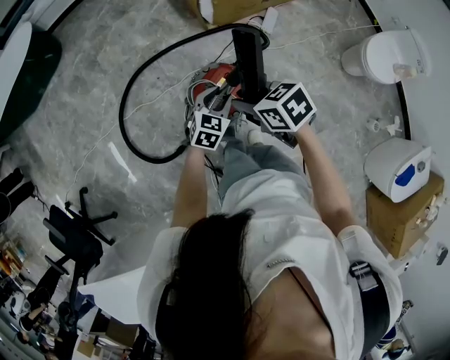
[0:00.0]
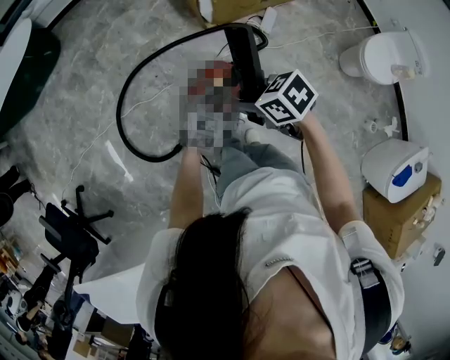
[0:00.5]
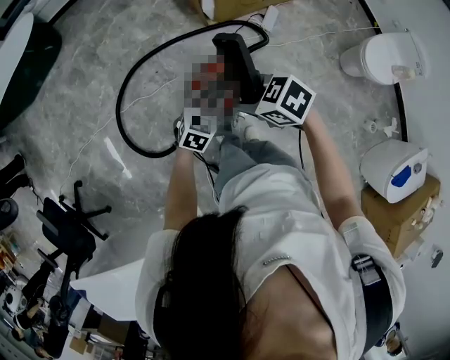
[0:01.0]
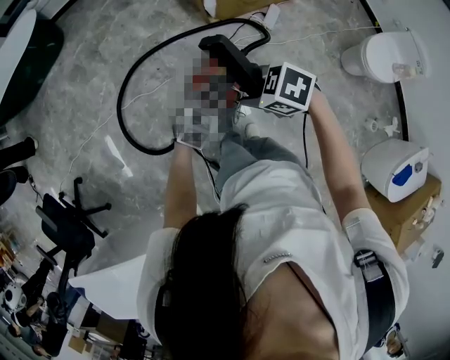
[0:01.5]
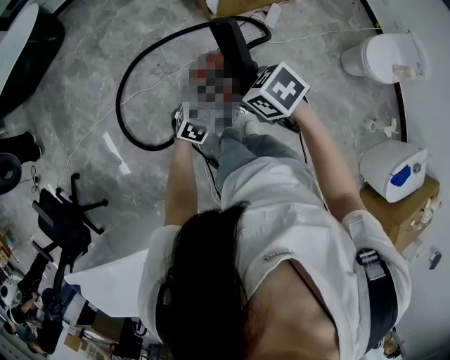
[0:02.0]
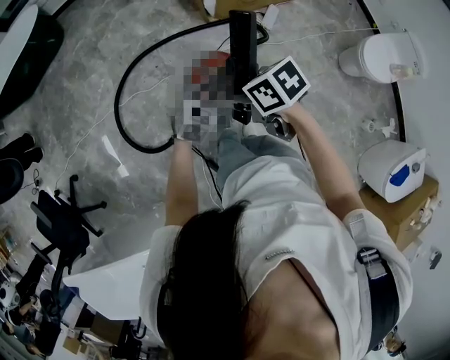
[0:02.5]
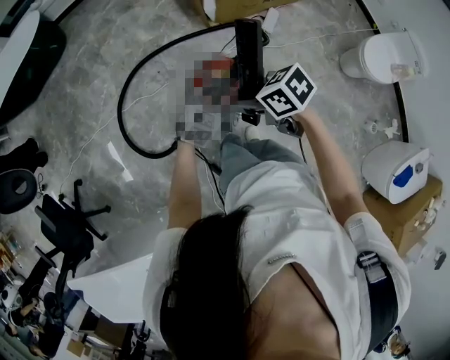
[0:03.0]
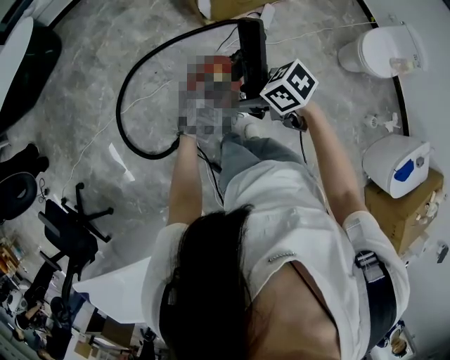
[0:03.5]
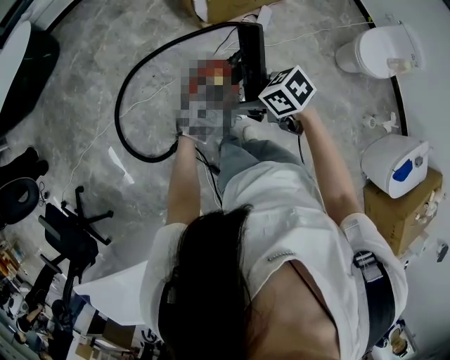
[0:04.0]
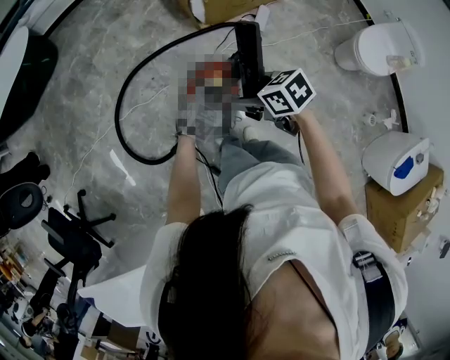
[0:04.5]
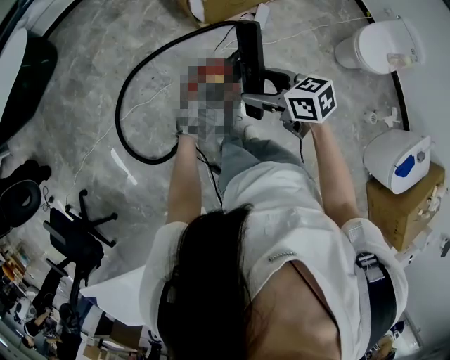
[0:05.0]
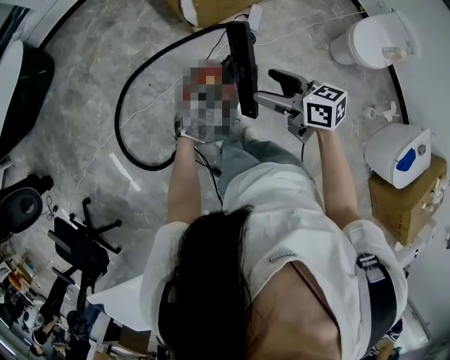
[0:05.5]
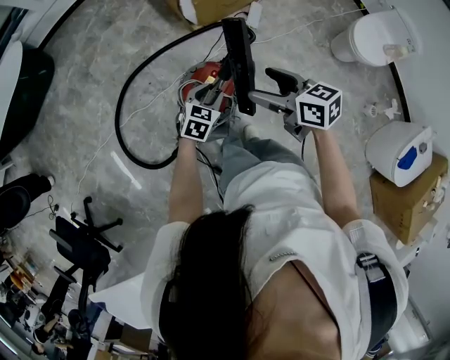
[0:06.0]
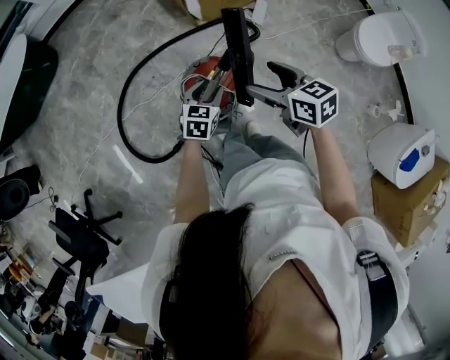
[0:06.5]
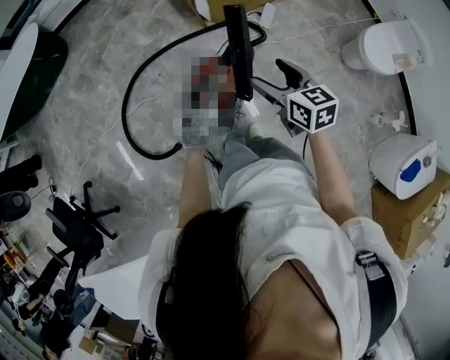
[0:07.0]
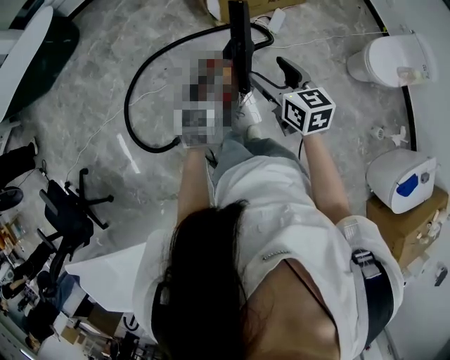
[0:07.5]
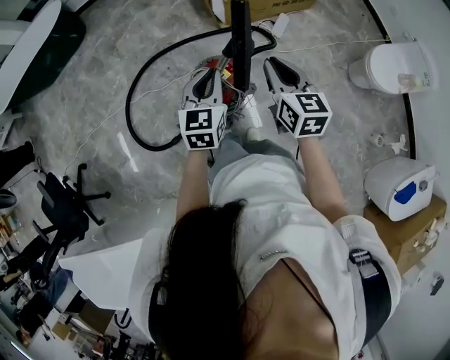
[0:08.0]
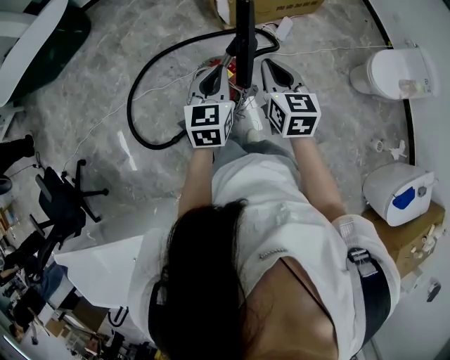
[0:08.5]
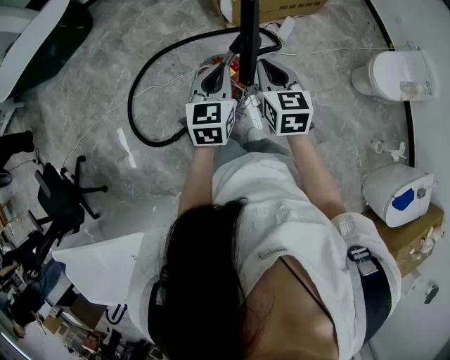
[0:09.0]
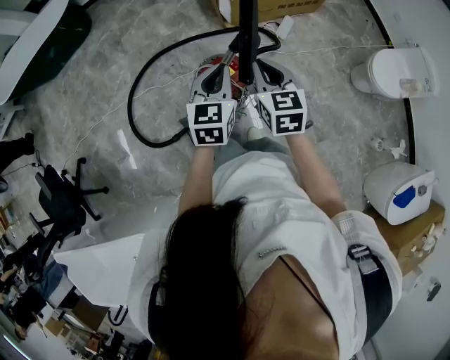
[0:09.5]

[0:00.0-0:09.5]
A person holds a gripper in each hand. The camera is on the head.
0:00.0 to 0:02.0: The left gripper changes place by some 5 cm. Meanwhile the right gripper moves some 5 cm.
0:02.0 to 0:04.0: The right gripper shifts by about 5 cm, and opens its fingers, while the left gripper shifts by approximately 5 cm.
0:04.0 to 0:05.5: The right gripper changes place by some 10 cm, and changes its angle by about 40 degrees.
0:05.5 to 0:07.5: The left gripper heads upward, covering some 15 cm, and turns by roughly 40 degrees; the right gripper rotates approximately 20 degrees.
0:07.5 to 0:09.5: The right gripper closes its fingers. Meanwhile the left gripper is displaced upward by some 5 cm, and closes up.

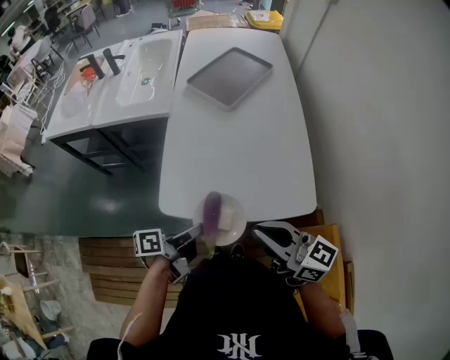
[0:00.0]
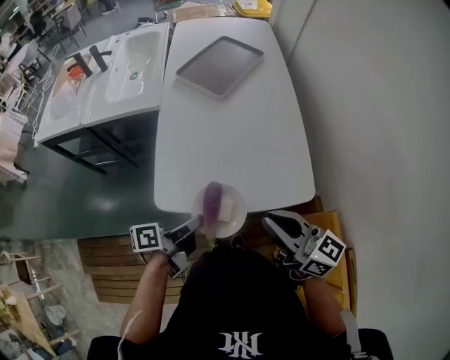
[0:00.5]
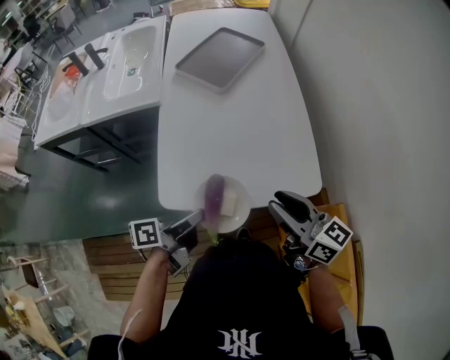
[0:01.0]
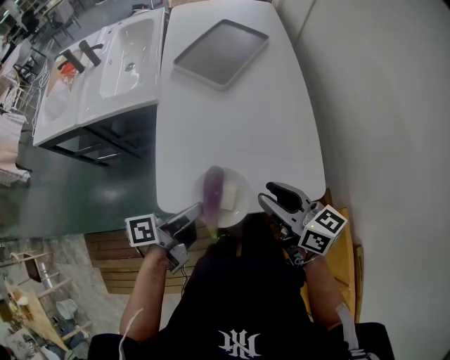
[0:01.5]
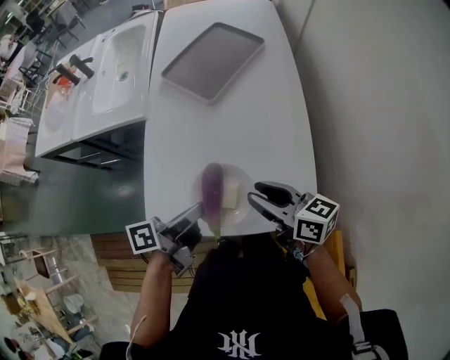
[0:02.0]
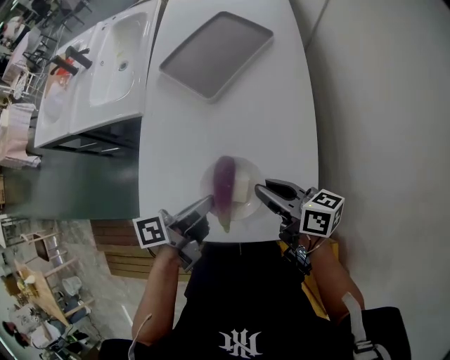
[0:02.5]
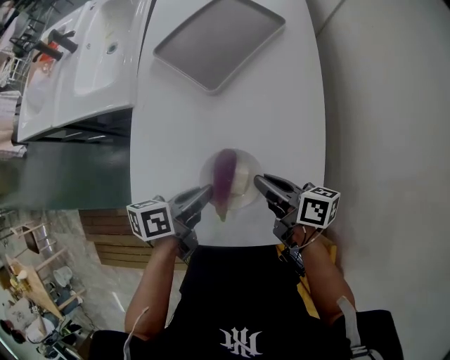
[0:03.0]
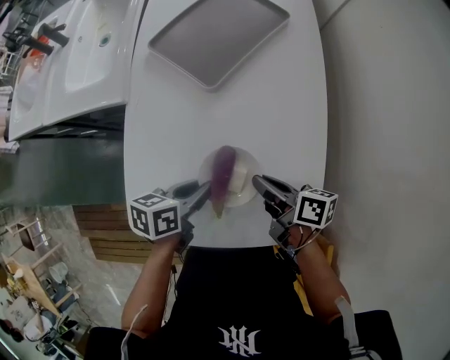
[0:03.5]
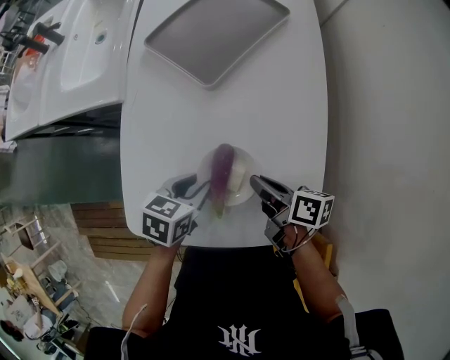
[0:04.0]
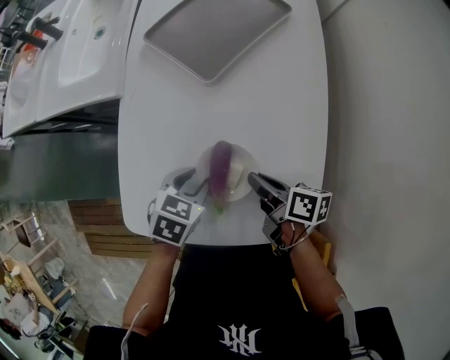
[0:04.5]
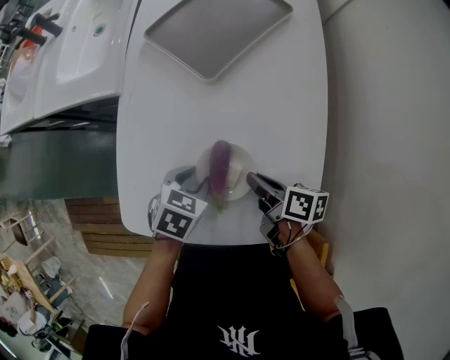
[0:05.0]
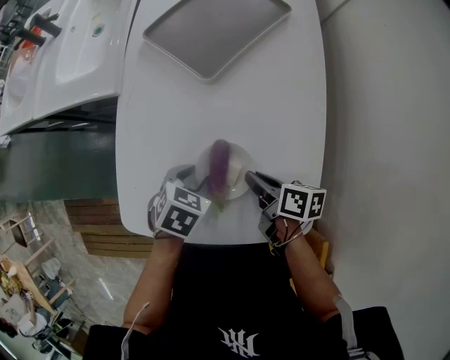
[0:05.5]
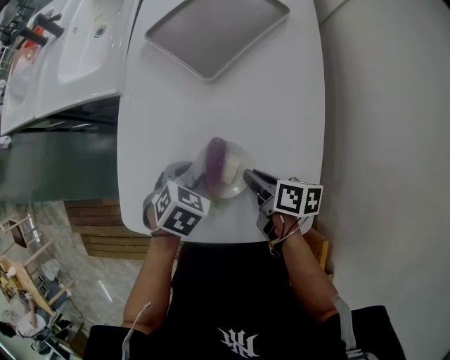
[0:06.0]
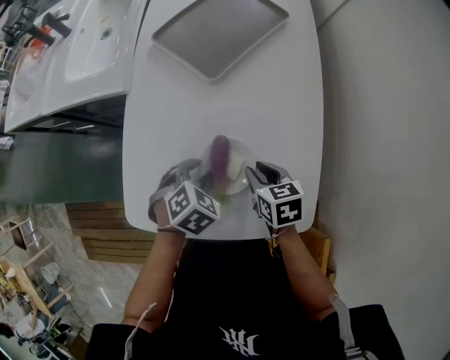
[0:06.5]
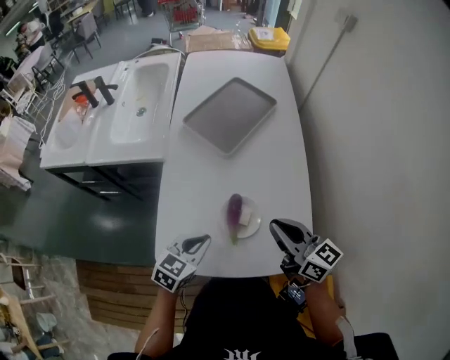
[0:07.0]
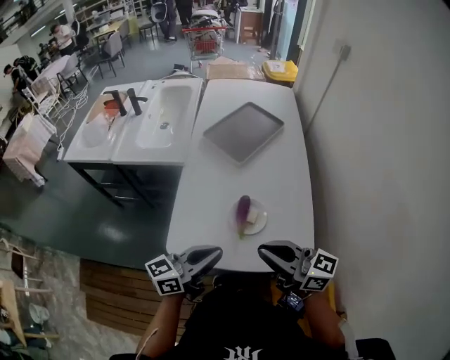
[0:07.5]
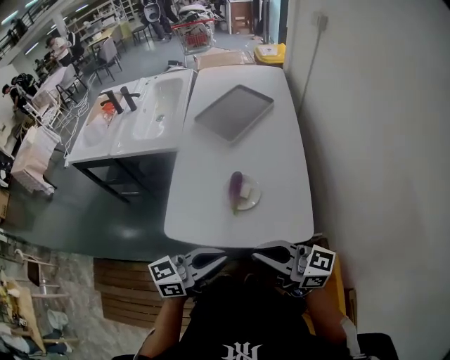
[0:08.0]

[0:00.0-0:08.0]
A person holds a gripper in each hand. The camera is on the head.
0:00.0 to 0:02.0: The right gripper is displaced forward and downward by about 20 cm, changes its angle by some 20 degrees, and opens its fingers; the left gripper heads forward and to the right, covering about 15 cm.
0:02.0 to 0:04.0: Both grippers move downward and forward, approximately 20 cm. The right gripper changes its angle by about 40 degrees, and closes, while the left gripper tilts its fingers about 40 degrees downward, and opens its fingers.
0:04.0 to 0:06.0: The left gripper swivels about 30 degrees.
0:06.0 to 0:08.0: The left gripper moves roughly 40 cm, tilts its fingers roughly 70 degrees upward, and closes; the right gripper shifts approximately 30 cm upward, and points its fingers about 50 degrees further upward.

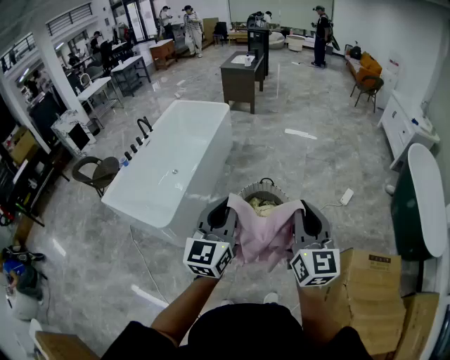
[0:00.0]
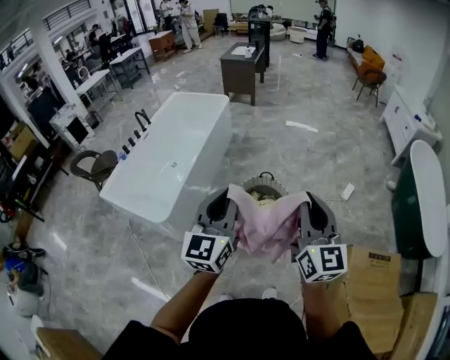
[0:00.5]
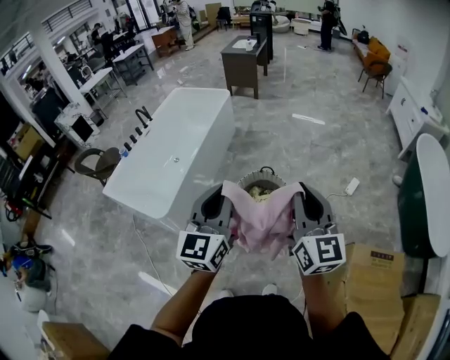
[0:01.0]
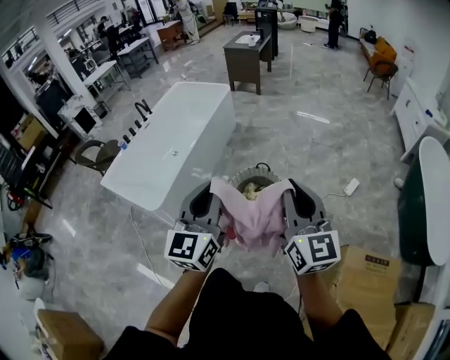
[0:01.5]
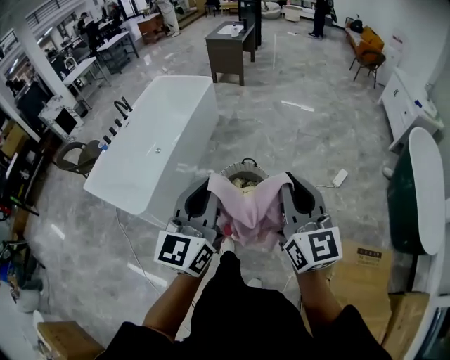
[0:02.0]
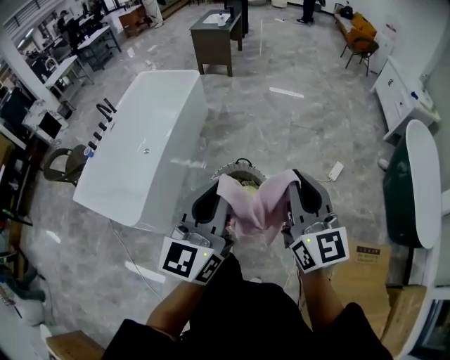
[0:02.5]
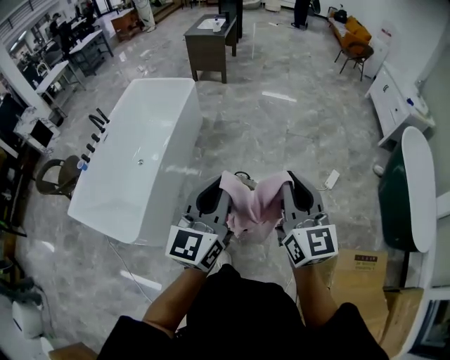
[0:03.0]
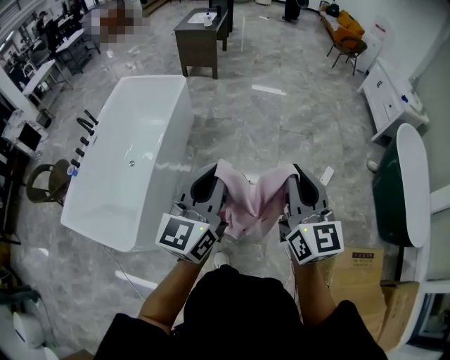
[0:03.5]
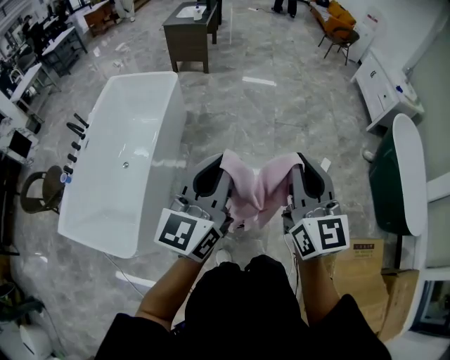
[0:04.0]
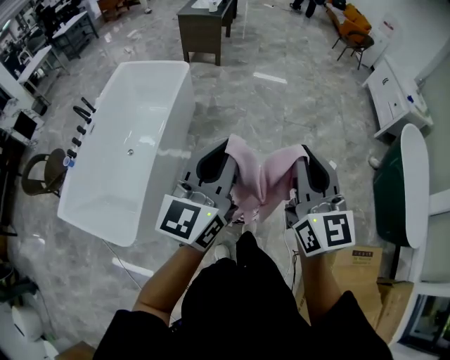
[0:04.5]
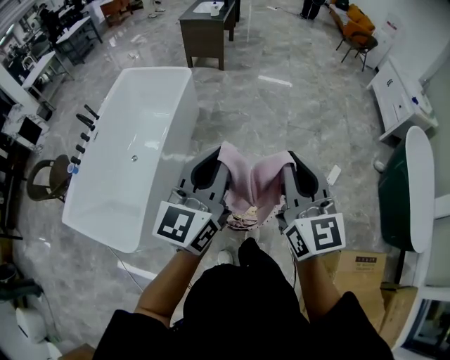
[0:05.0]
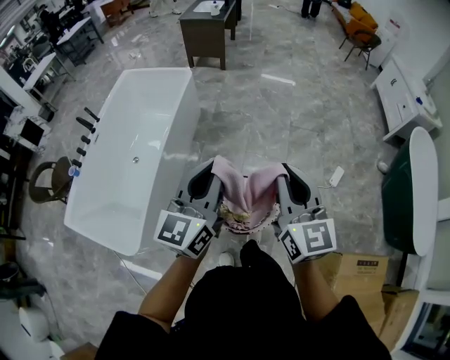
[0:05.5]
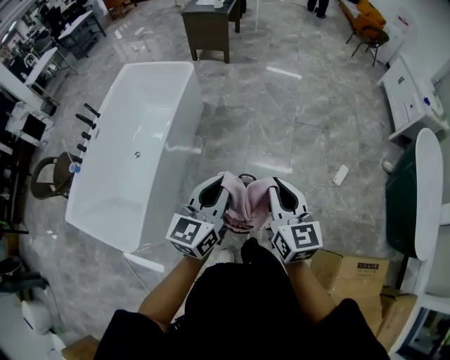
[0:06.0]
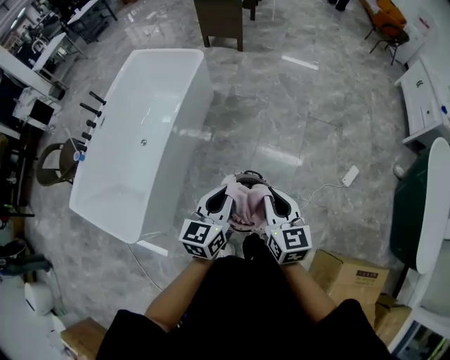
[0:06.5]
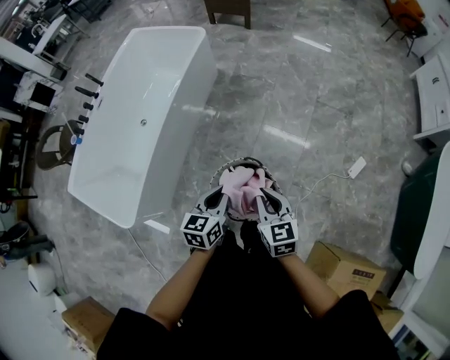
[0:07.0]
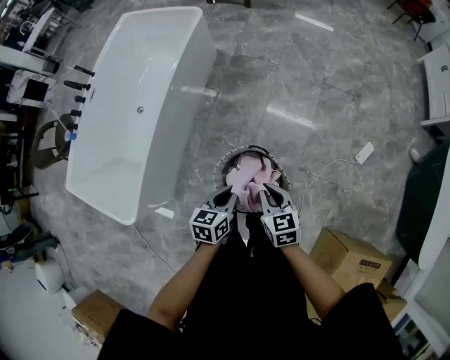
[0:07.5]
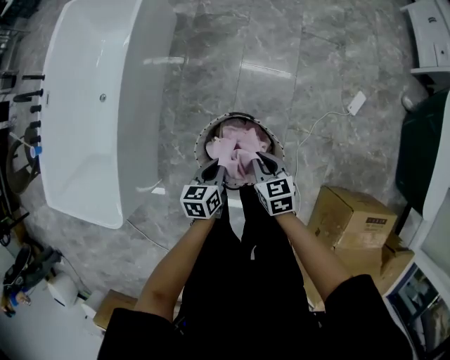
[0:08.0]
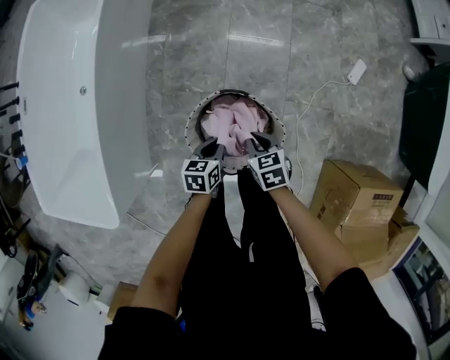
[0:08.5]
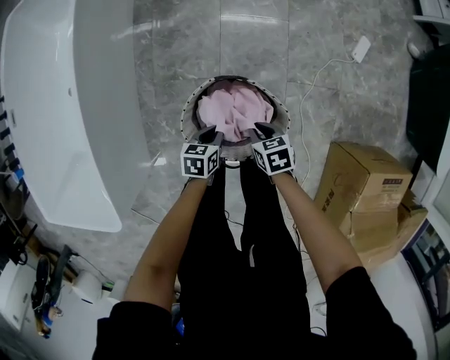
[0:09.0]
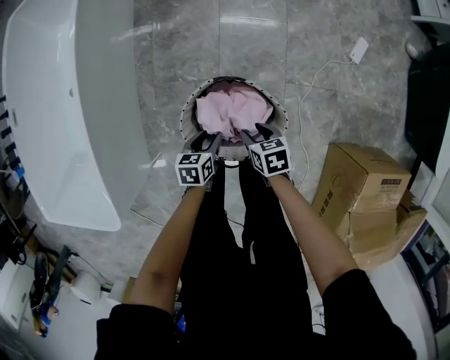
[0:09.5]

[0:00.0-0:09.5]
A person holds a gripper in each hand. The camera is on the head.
0:00.0 to 0:02.0: The right gripper travels forward and to the right by some 15 cm; the left gripper is displaced to the right and forward by some 15 cm.
0:02.0 to 0:04.0: Both grippers move forward, roughly 30 cm.
0:04.0 to 0:05.5: The two grippers go roughly 10 cm forward and downward.
0:05.5 to 0:07.5: The two grippers go approximately 40 cm downward. The left gripper points its fingers some 40 degrees further downward, while the right gripper tilts its fingers some 40 degrees downward.
0:07.5 to 0:09.5: The two grippers go approximately 35 cm downward. The left gripper turns by approximately 20 degrees, and opens. Meanwhile the right gripper turns by roughly 40 degrees, and opens its fingers.
